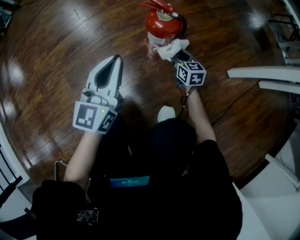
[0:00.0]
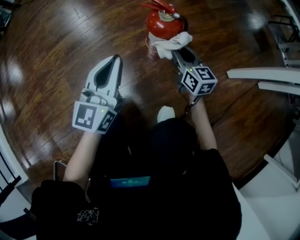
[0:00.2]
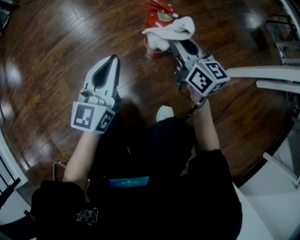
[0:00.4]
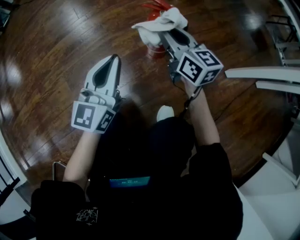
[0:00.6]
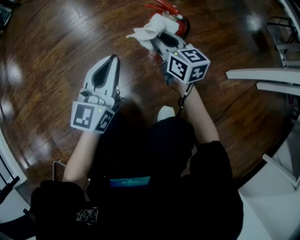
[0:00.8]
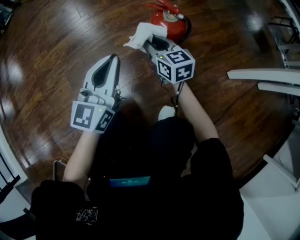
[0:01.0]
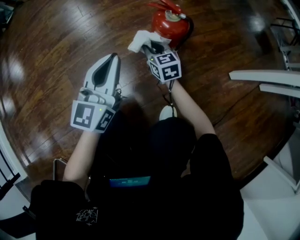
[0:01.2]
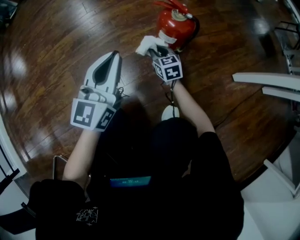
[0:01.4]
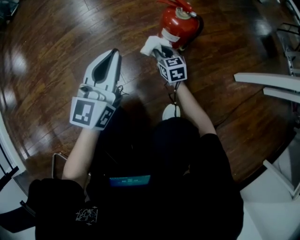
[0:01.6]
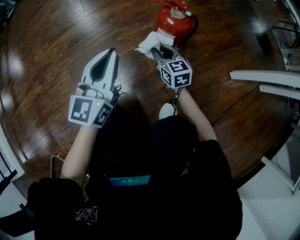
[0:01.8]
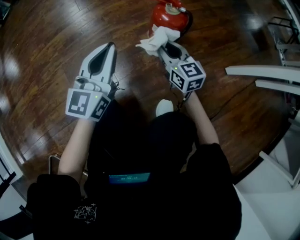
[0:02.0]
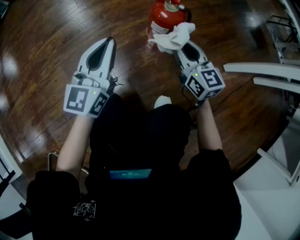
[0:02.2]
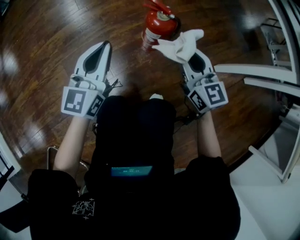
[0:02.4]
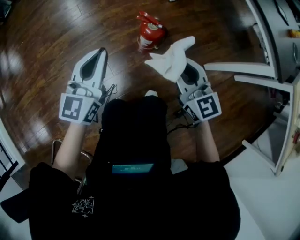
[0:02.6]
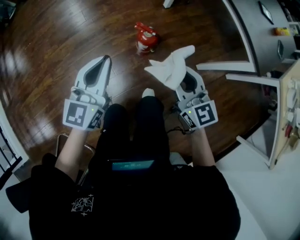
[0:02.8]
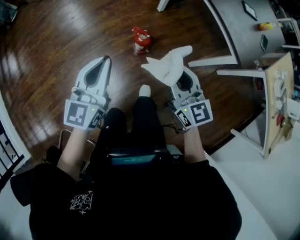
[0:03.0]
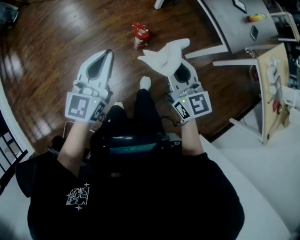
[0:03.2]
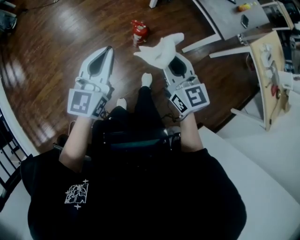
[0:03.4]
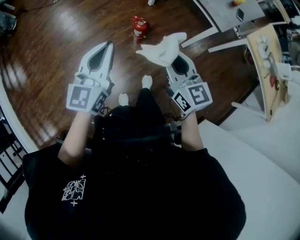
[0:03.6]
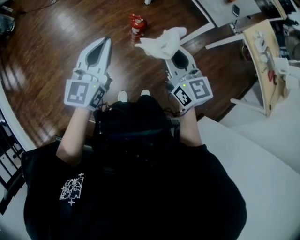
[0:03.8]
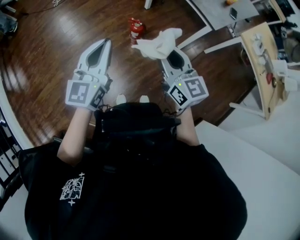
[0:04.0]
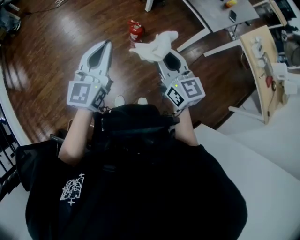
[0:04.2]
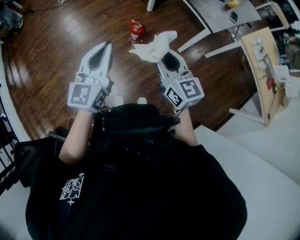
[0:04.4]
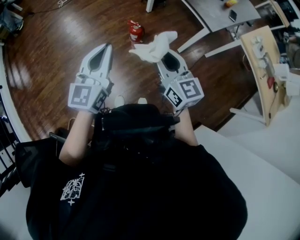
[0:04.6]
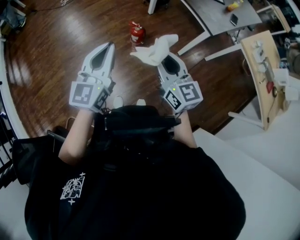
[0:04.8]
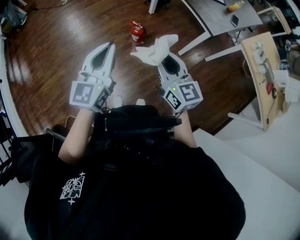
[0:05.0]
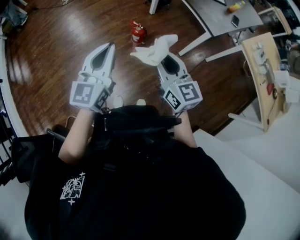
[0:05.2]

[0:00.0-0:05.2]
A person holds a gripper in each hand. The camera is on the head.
0:00.0 to 0:01.8: The right gripper goes up and down, roughly 25 cm each way, reversing 2 times.
0:01.8 to 0:03.4: The grippers both shift upward by approximately 70 cm.
0:03.4 to 0:05.2: The two grippers go approximately 10 cm backward and upward.

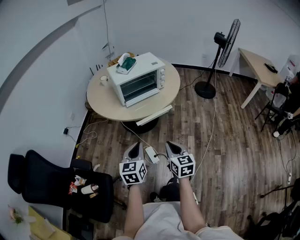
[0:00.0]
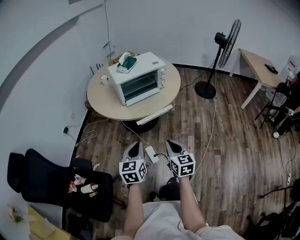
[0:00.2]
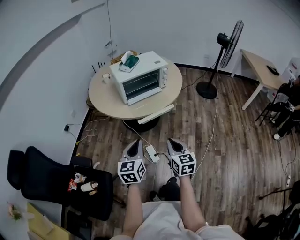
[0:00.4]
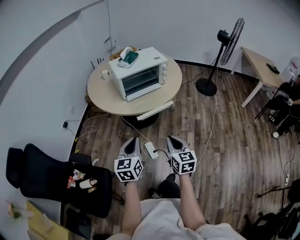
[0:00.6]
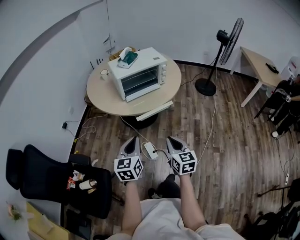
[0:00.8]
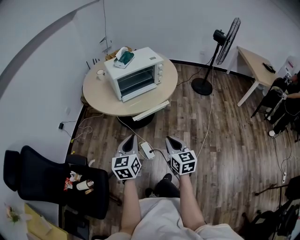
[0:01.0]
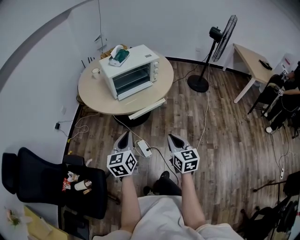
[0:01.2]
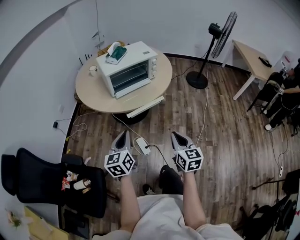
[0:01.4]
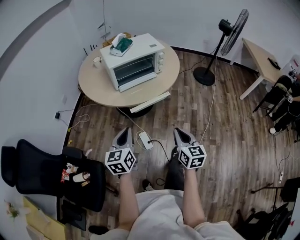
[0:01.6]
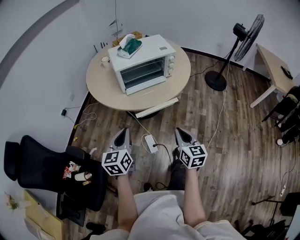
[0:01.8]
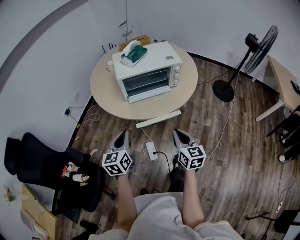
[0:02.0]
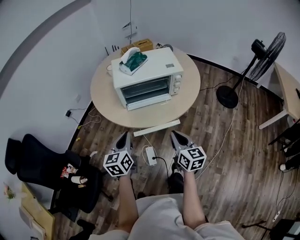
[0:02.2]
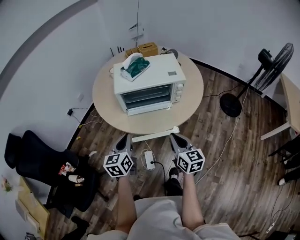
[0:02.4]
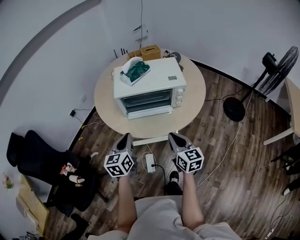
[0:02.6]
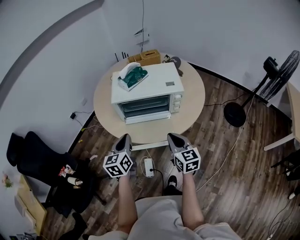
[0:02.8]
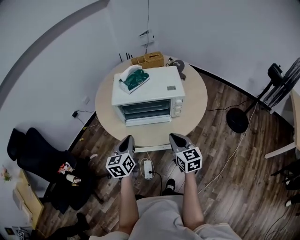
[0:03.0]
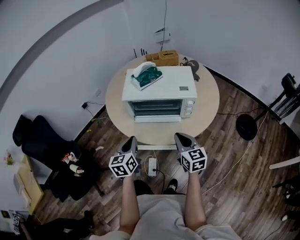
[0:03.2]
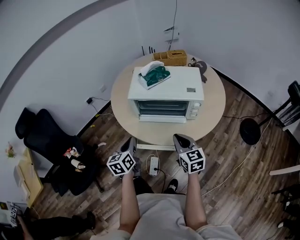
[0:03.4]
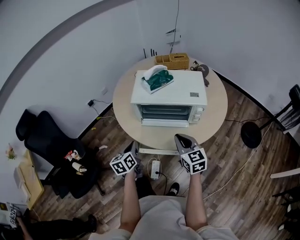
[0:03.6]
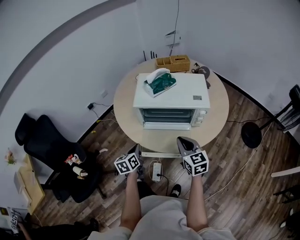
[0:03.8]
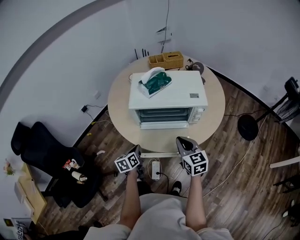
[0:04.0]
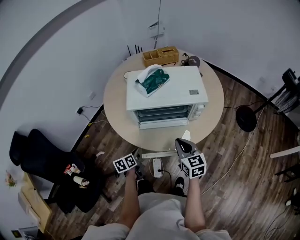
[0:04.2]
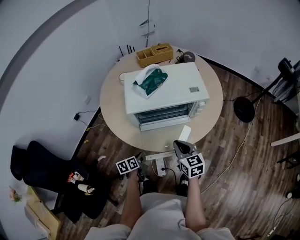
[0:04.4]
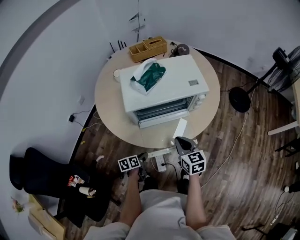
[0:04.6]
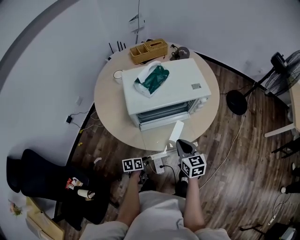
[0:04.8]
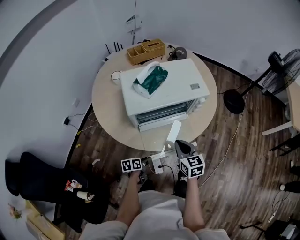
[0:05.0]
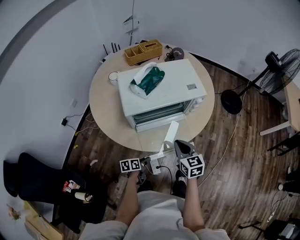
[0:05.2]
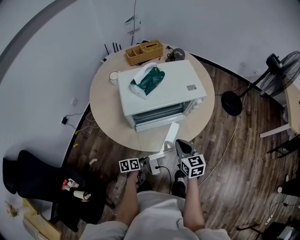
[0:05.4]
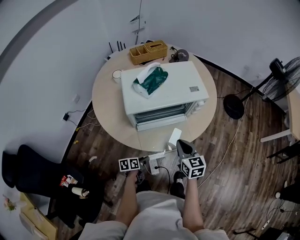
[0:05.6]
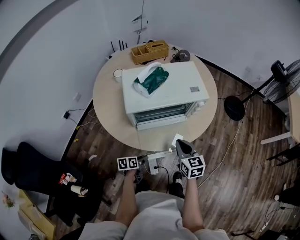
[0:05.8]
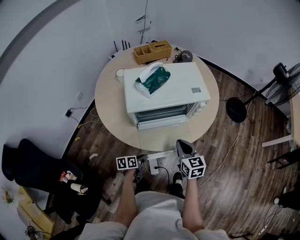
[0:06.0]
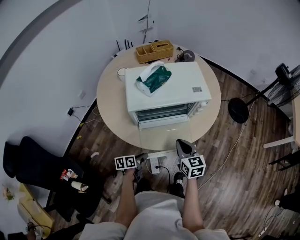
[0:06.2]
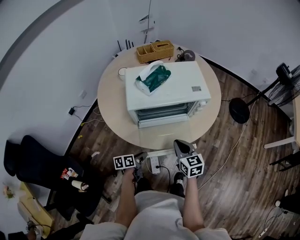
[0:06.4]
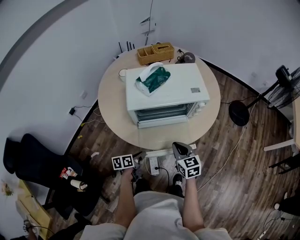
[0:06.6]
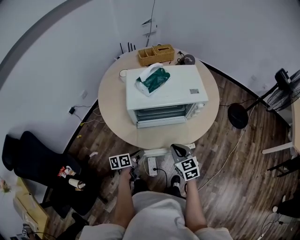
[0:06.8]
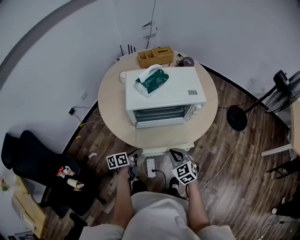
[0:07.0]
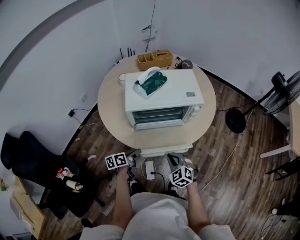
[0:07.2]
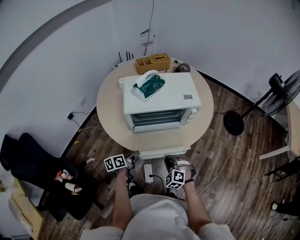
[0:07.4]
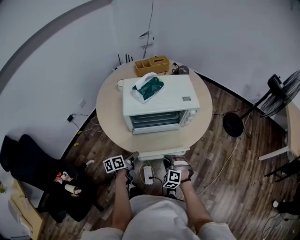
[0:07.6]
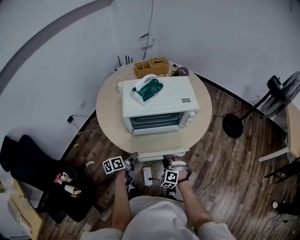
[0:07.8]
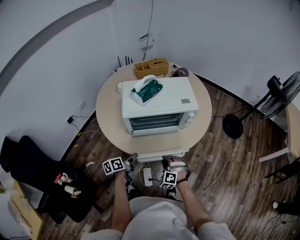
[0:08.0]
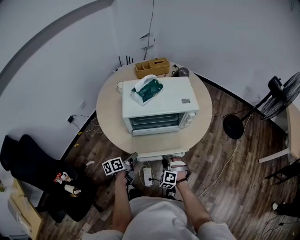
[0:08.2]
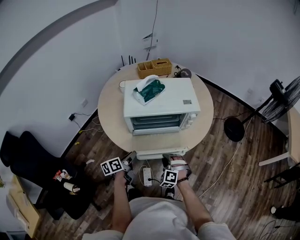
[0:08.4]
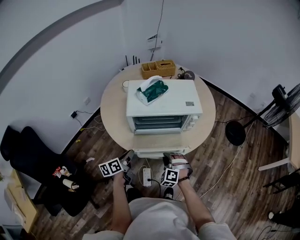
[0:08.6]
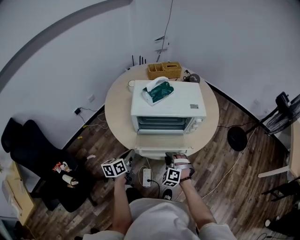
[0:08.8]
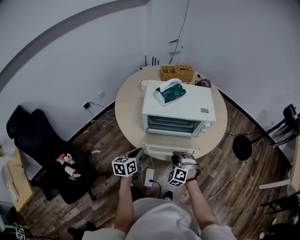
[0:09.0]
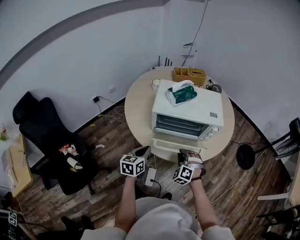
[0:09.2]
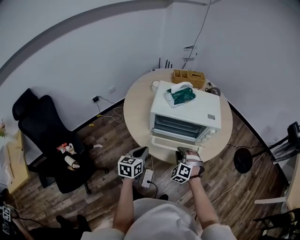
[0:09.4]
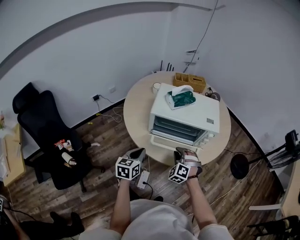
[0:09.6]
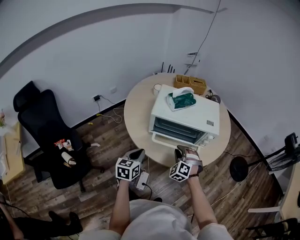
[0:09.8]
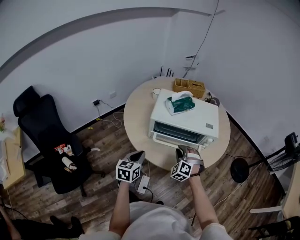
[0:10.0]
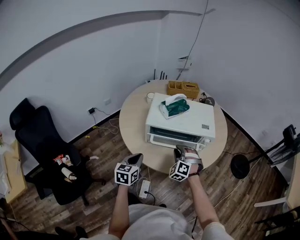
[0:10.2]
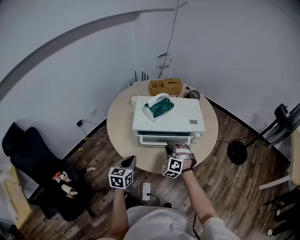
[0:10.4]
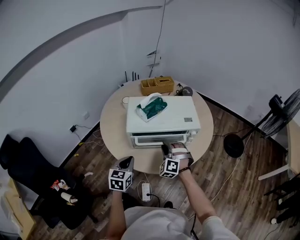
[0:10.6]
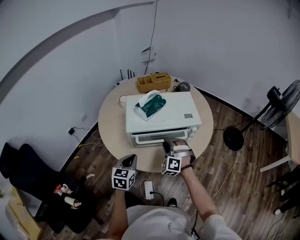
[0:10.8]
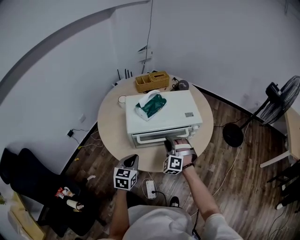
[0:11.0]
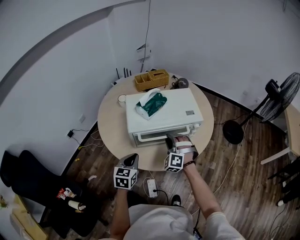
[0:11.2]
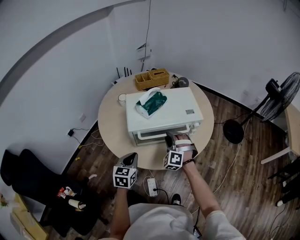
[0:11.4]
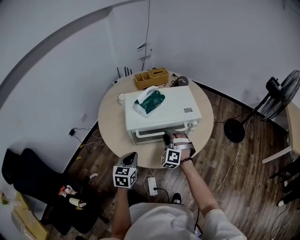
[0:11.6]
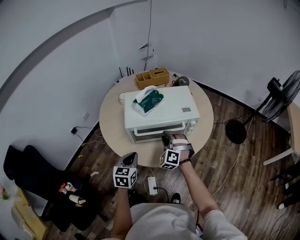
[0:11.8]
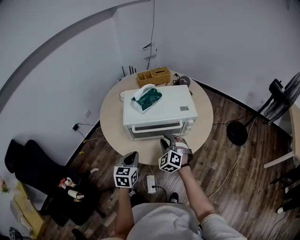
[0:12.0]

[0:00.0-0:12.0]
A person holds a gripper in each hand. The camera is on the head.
0:00.0 to 0:01.6: The right gripper moves to the right, approximately 5 cm.
0:01.6 to 0:03.0: The right gripper shifts by some 35 cm, and swivels about 30 degrees, while the left gripper shifts by roughly 25 cm, and rotates approximately 20 degrees.
0:03.0 to 0:04.4: The left gripper is displaced downward by roughly 25 cm, and rotates approximately 40 degrees, while the right gripper travels to the left, downward and forward by about 15 cm.
0:06.0 to 0:07.6: The left gripper moves upward, approximately 10 cm, and turns by some 20 degrees. Meanwhile the right gripper shifts roughly 15 cm downward and backward, and rolls counterclockwise, seen from behind, by about 70 degrees.
0:07.6 to 0:09.0: The right gripper heads upward, covering roughly 5 cm; the left gripper shifts some 10 cm upward, changes its angle by some 30 degrees, and closes its fingers.
0:09.0 to 0:10.4: The left gripper shifts by roughly 5 cm; the right gripper is displaced forward and upward by approximately 15 cm.
0:10.4 to 0:12.0: The right gripper turns by some 20 degrees.

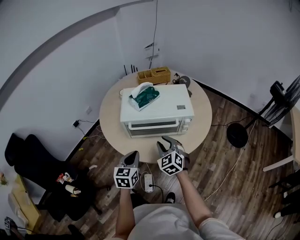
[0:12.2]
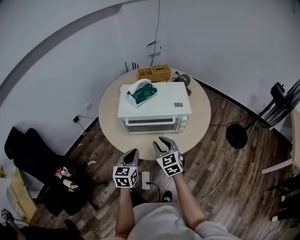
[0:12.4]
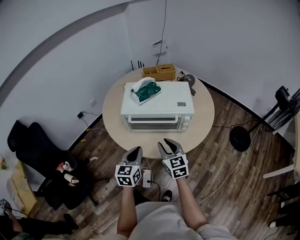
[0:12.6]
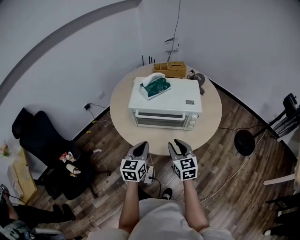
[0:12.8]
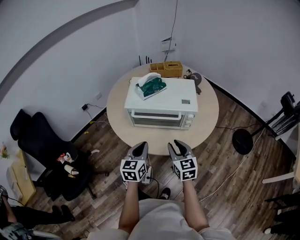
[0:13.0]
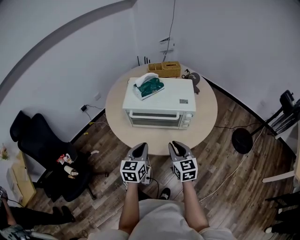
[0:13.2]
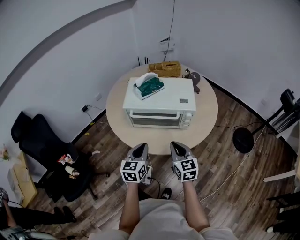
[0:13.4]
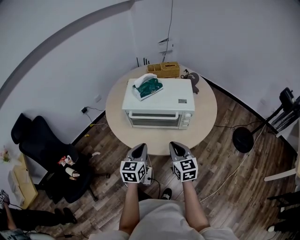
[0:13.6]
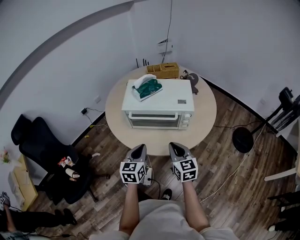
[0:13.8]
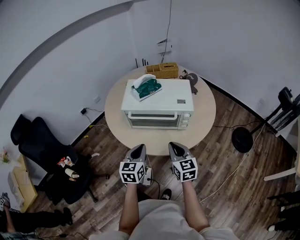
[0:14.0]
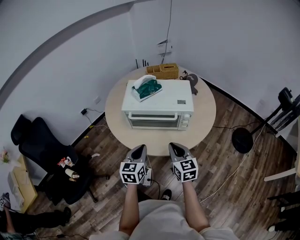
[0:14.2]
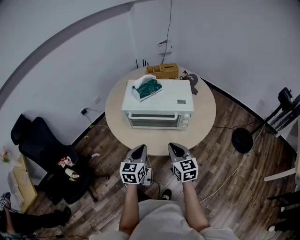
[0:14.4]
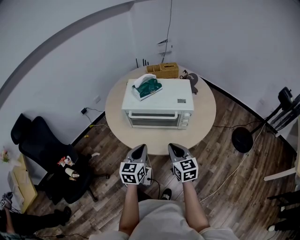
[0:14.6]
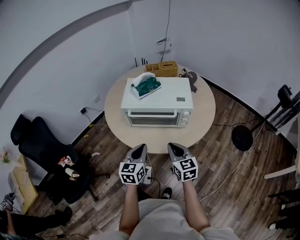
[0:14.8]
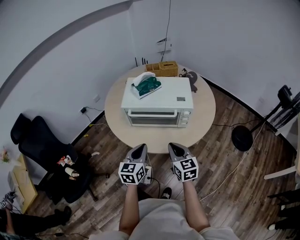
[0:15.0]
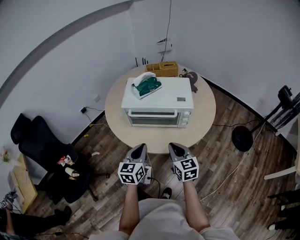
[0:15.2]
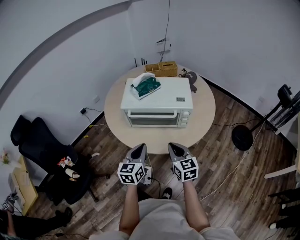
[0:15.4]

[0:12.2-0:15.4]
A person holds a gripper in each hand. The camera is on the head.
0:12.2 to 0:13.8: The right gripper moves backward and to the right, roughly 10 cm, turns by some 40 degrees, and closes, while the left gripper shifts approximately 5 cm to the right.
0:13.8 to 0:15.4: The grippers make only small movements.

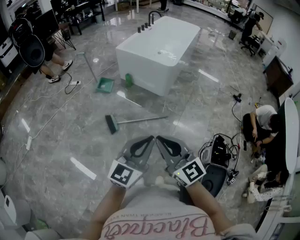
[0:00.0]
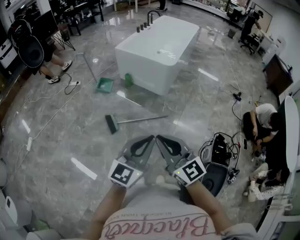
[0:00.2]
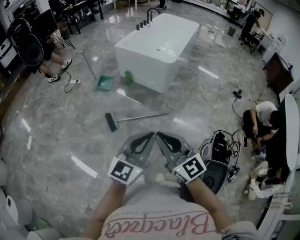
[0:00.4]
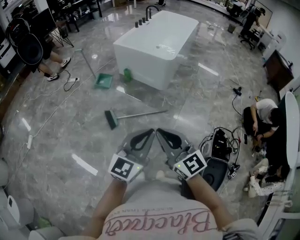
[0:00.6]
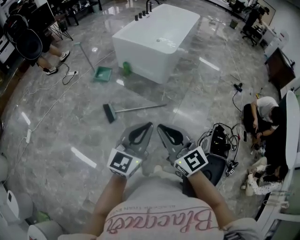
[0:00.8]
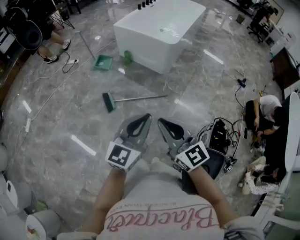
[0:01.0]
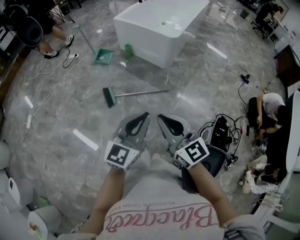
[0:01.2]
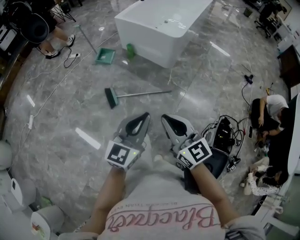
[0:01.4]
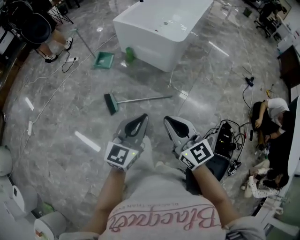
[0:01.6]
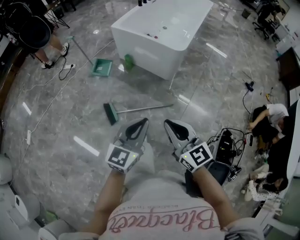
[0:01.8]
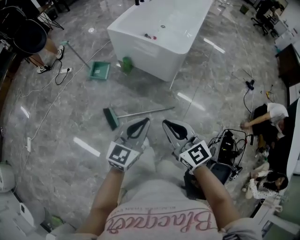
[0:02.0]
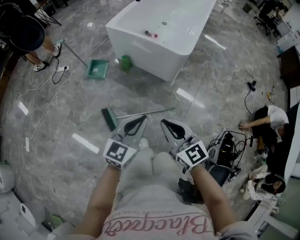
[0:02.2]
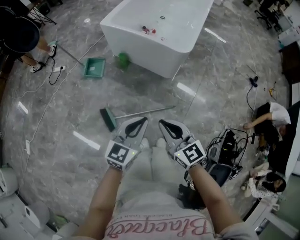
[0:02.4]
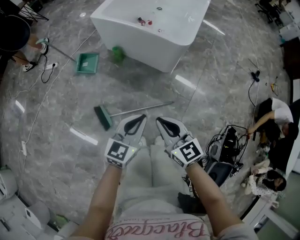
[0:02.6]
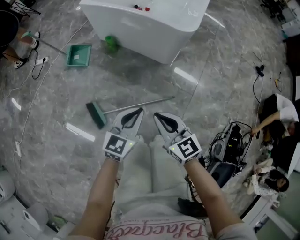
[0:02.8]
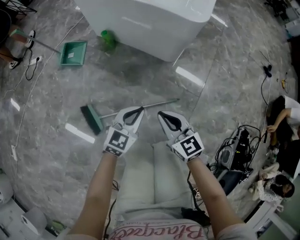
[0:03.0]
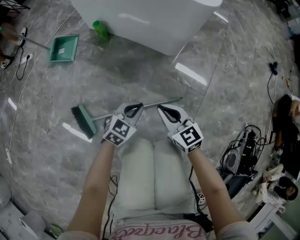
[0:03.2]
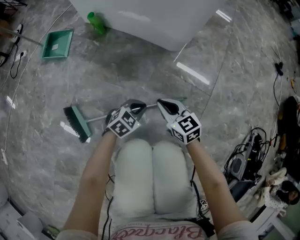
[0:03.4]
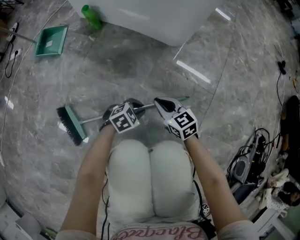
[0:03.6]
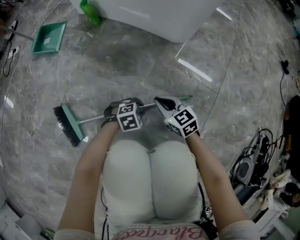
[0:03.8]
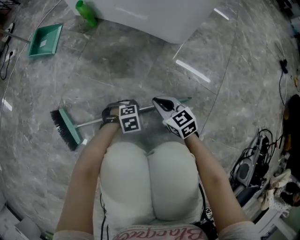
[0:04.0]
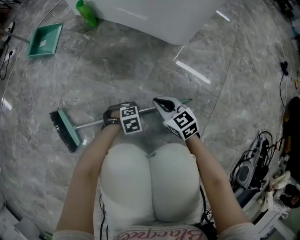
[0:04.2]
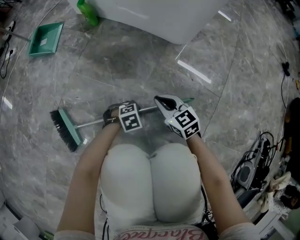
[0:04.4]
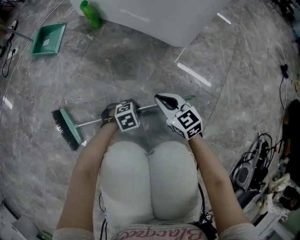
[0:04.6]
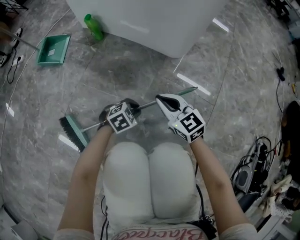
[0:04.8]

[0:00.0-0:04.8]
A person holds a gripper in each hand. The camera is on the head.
0:00.0 to 0:01.6: The right gripper goes roughly 15 cm forward, downward and to the right. Meanwhile the left gripper goes approximately 15 cm forward and downward.
0:01.6 to 0:03.2: Both grippers travel together downward and forward, approximately 60 cm. The left gripper swivels about 40 degrees.
0:03.2 to 0:04.8: The left gripper goes about 20 cm downward, and swivels approximately 30 degrees. The right gripper moves downward, some 10 cm.
